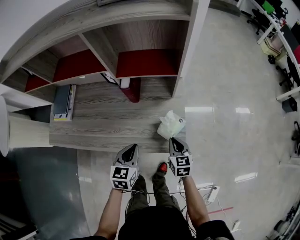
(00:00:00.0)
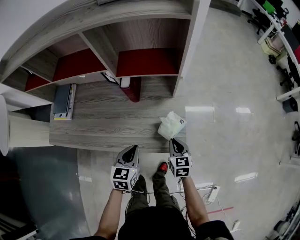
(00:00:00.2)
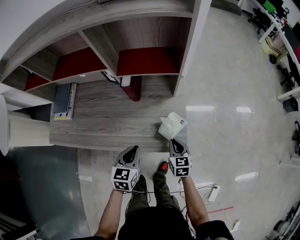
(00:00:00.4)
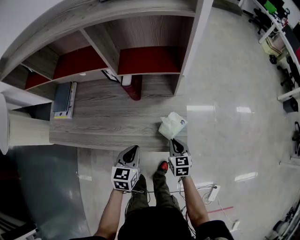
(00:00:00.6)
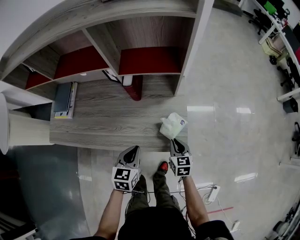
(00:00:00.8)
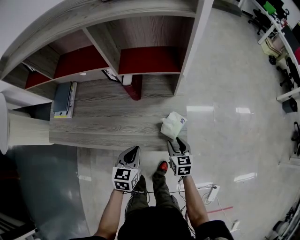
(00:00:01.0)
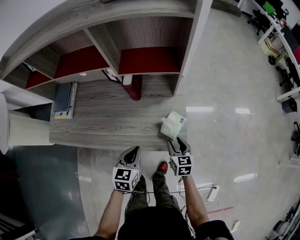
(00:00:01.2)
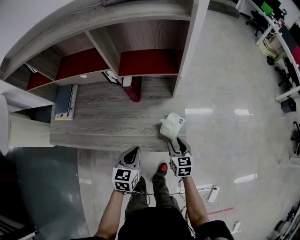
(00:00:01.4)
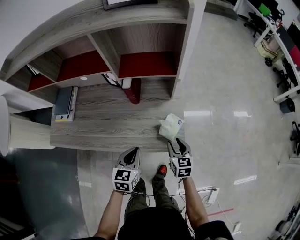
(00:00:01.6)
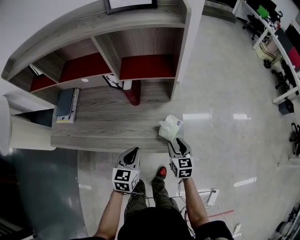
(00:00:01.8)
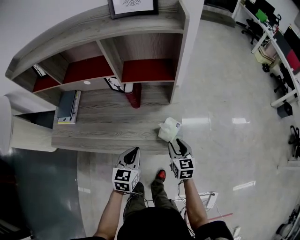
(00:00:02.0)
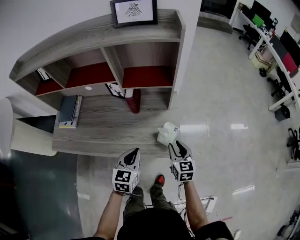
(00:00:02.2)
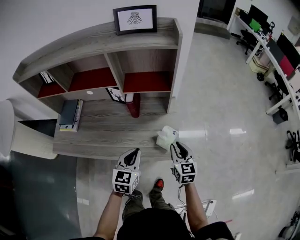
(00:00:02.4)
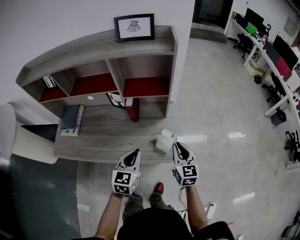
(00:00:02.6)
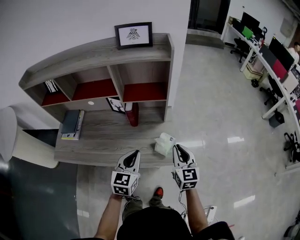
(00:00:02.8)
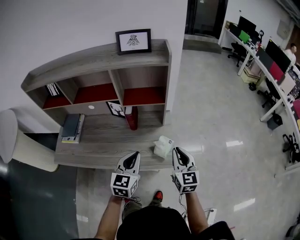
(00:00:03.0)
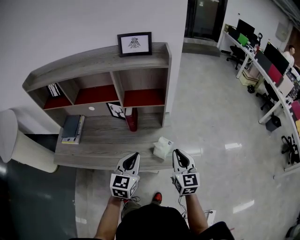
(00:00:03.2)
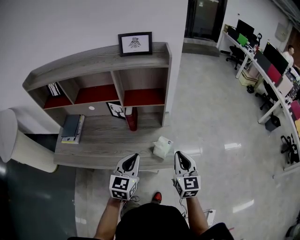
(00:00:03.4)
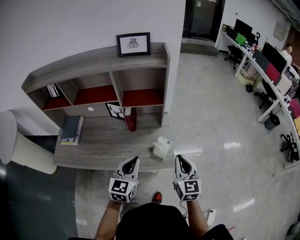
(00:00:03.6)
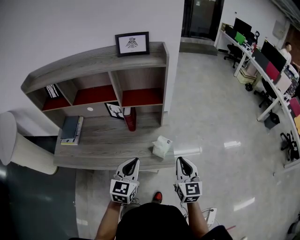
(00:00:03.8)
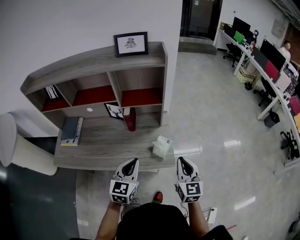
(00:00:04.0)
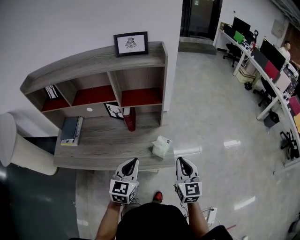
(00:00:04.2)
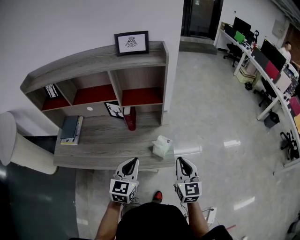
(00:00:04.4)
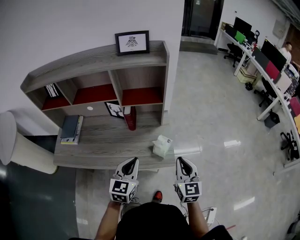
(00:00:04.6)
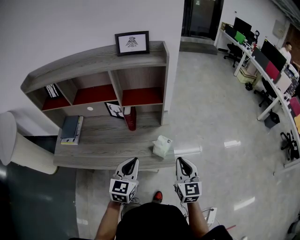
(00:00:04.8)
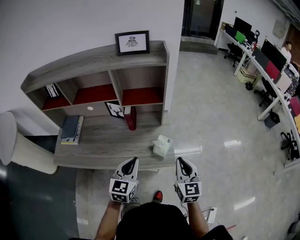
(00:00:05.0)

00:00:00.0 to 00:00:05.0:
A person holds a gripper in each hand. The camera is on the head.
00:00:00.0 to 00:00:01.6: The right gripper opens.
00:00:01.6 to 00:00:03.4: Both grippers travel together upward, about 20 cm. The right gripper rotates about 30 degrees, and closes its fingers, while the left gripper swivels some 20 degrees.
00:00:03.4 to 00:00:05.0: The grippers move only a little.

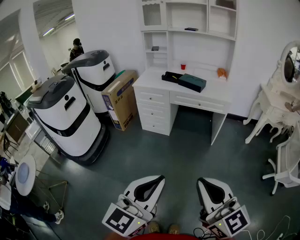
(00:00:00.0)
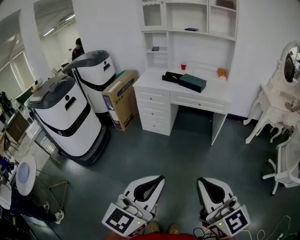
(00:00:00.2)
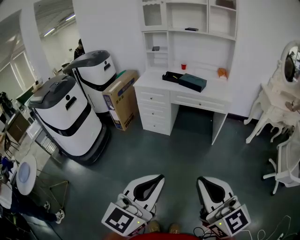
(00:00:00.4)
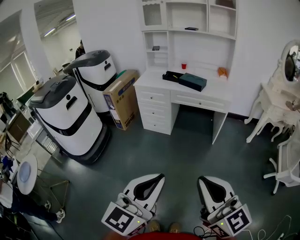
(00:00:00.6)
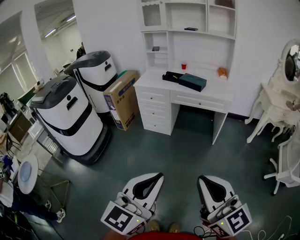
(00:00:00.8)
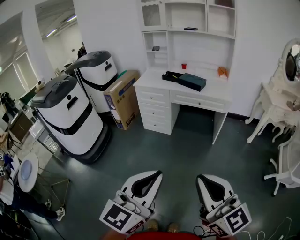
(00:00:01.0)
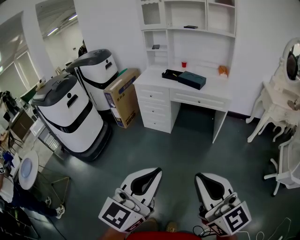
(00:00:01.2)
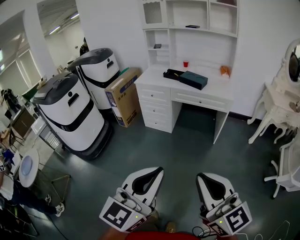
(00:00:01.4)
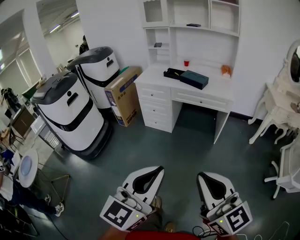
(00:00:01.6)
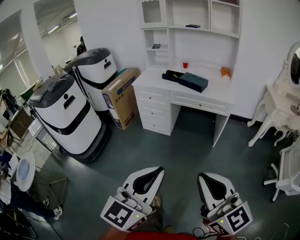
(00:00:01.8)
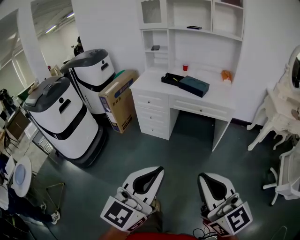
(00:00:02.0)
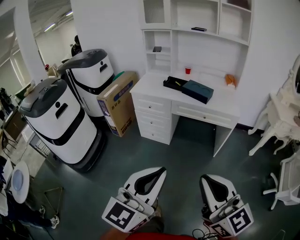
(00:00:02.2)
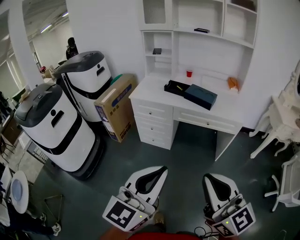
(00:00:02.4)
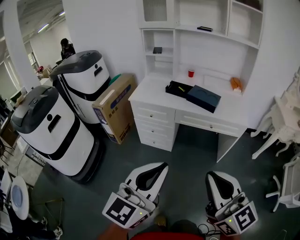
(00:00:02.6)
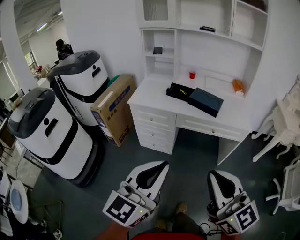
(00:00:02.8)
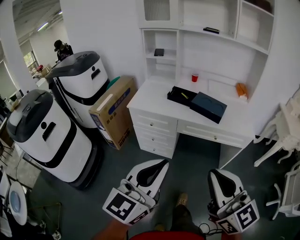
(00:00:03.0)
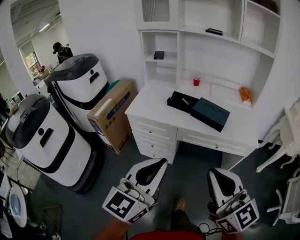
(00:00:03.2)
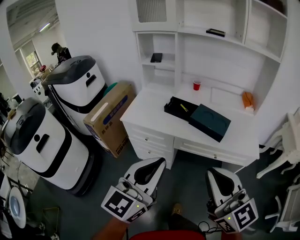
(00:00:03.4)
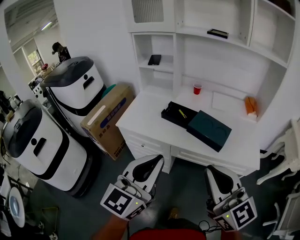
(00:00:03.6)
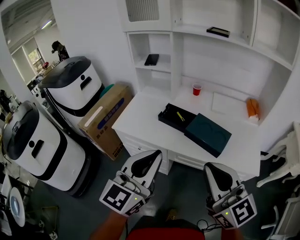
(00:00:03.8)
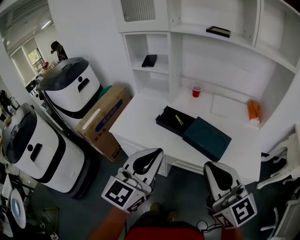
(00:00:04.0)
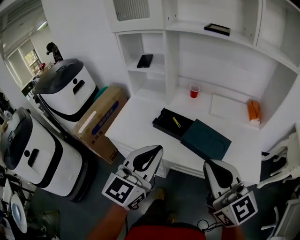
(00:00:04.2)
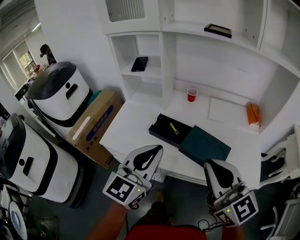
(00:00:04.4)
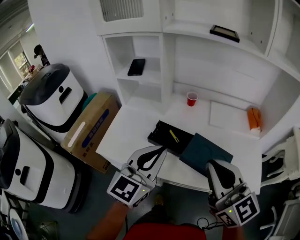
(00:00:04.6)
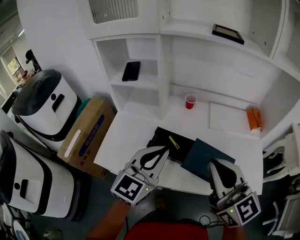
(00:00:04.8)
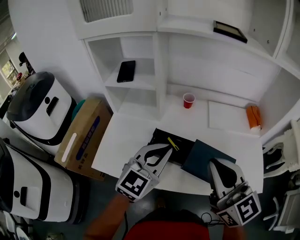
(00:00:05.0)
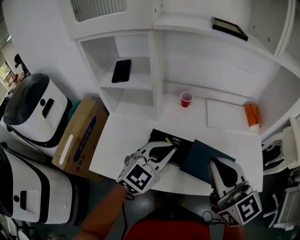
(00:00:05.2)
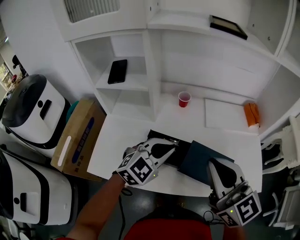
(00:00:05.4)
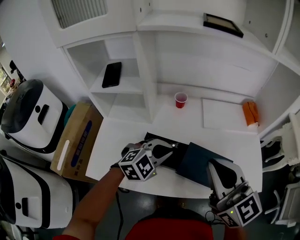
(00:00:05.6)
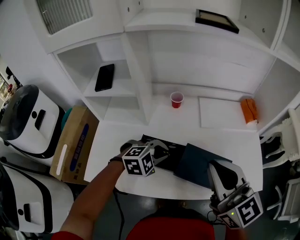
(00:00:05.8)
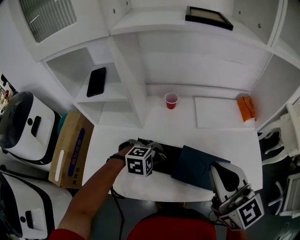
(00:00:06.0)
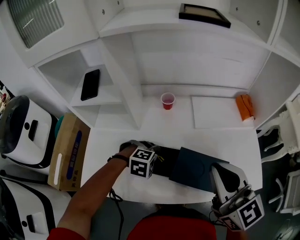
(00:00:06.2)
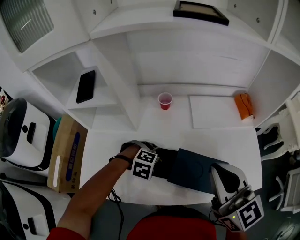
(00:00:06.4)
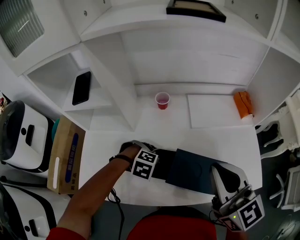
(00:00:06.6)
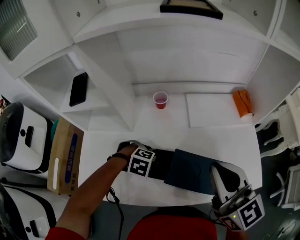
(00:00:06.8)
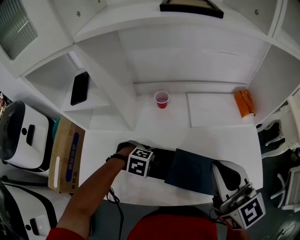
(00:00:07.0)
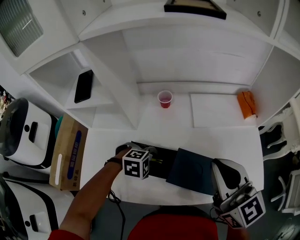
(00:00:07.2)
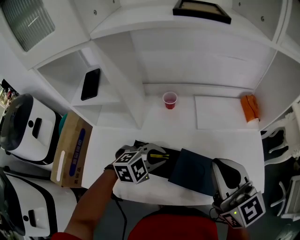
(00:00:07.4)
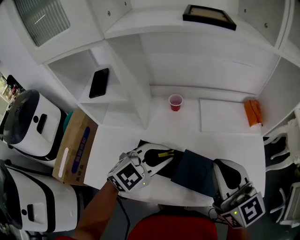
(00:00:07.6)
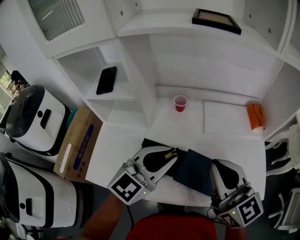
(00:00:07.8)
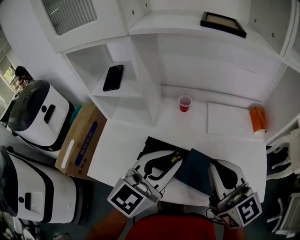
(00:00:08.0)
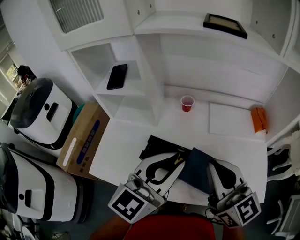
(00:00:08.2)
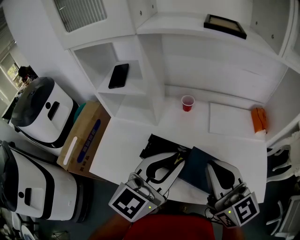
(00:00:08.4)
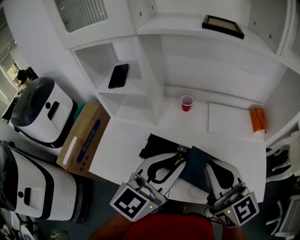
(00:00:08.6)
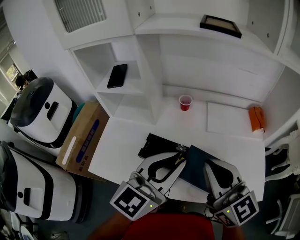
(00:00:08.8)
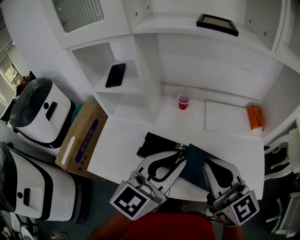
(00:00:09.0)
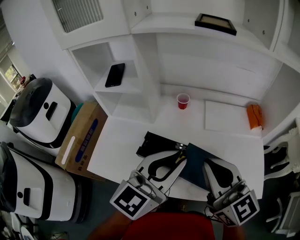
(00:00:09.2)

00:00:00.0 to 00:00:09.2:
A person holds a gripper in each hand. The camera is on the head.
00:00:00.0 to 00:00:01.6: The left gripper ends up approximately 5 cm from where it was; the right gripper moves roughly 5 cm.
00:00:01.6 to 00:00:03.0: The pair of grippers is taken forward, approximately 40 cm.
00:00:03.0 to 00:00:04.6: Both grippers are carried forward, roughly 50 cm.
00:00:04.6 to 00:00:06.2: The left gripper moves downward, approximately 25 cm, tilts its fingers roughly 70 degrees downward, and opens, while the right gripper ends up about 15 cm from where it was.
00:00:06.2 to 00:00:07.6: The left gripper moves upward, roughly 15 cm, and tilts its fingers some 50 degrees upward.
00:00:07.6 to 00:00:09.2: The right gripper ends up about 5 cm from where it was. The left gripper moves upward and backward, approximately 15 cm, and swivels approximately 40 degrees.

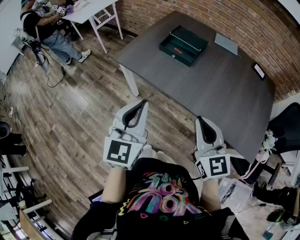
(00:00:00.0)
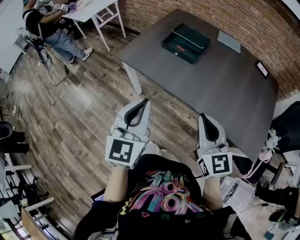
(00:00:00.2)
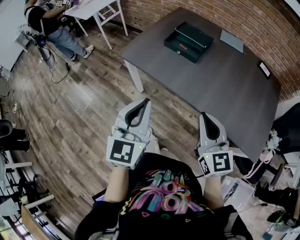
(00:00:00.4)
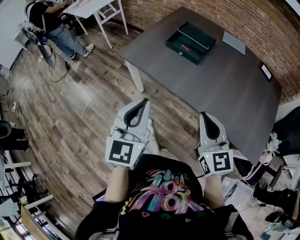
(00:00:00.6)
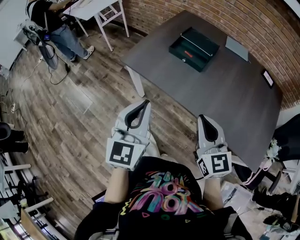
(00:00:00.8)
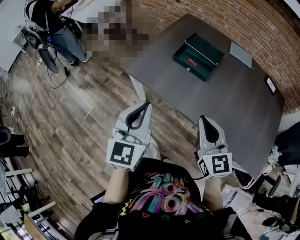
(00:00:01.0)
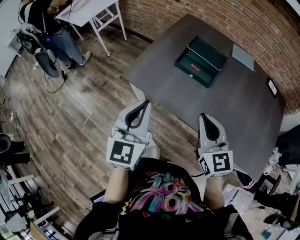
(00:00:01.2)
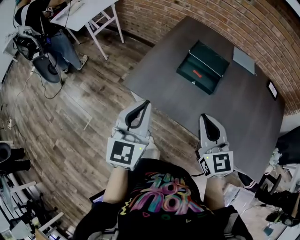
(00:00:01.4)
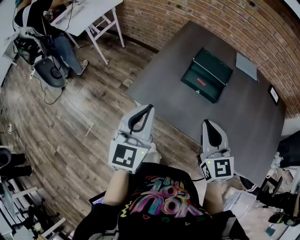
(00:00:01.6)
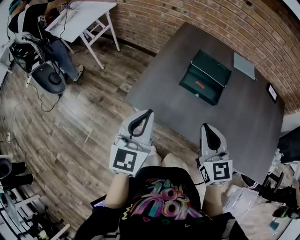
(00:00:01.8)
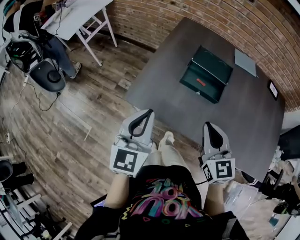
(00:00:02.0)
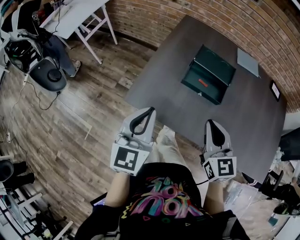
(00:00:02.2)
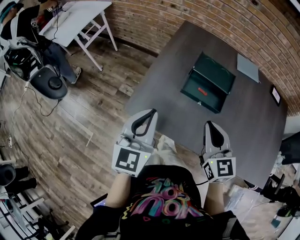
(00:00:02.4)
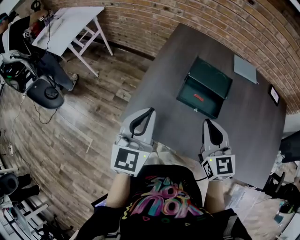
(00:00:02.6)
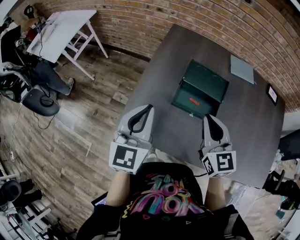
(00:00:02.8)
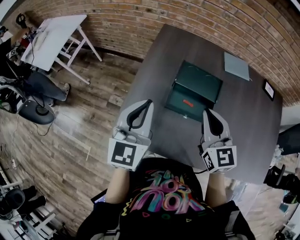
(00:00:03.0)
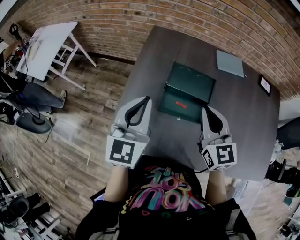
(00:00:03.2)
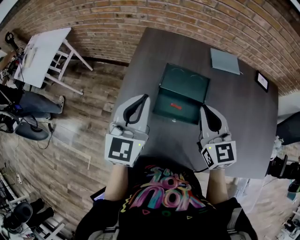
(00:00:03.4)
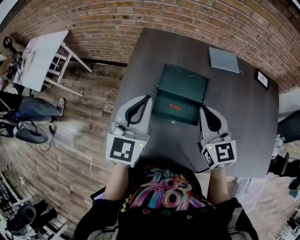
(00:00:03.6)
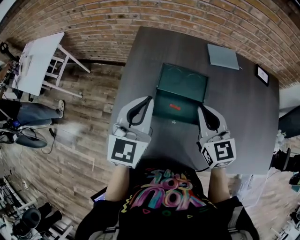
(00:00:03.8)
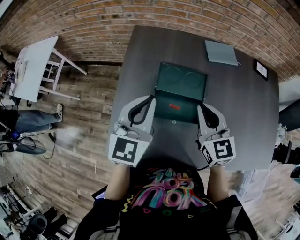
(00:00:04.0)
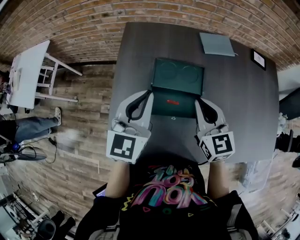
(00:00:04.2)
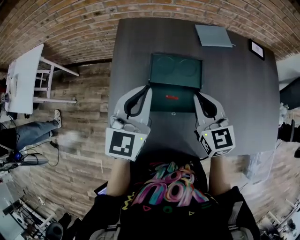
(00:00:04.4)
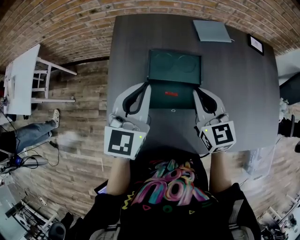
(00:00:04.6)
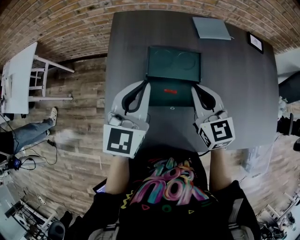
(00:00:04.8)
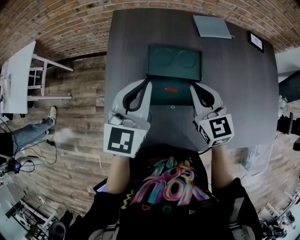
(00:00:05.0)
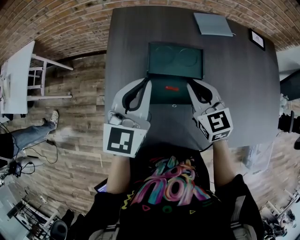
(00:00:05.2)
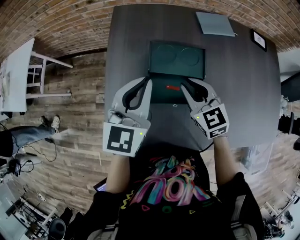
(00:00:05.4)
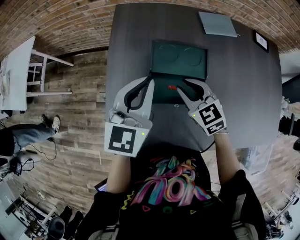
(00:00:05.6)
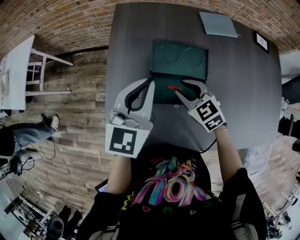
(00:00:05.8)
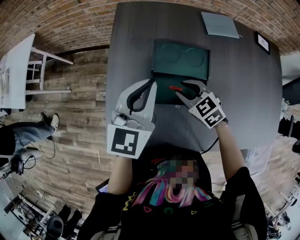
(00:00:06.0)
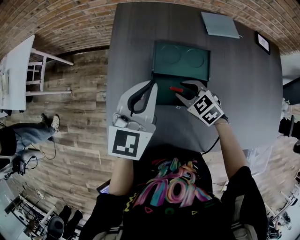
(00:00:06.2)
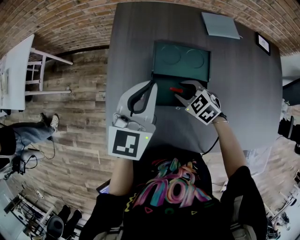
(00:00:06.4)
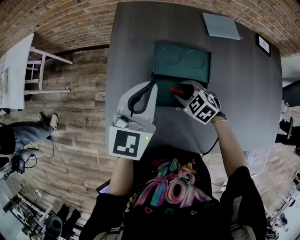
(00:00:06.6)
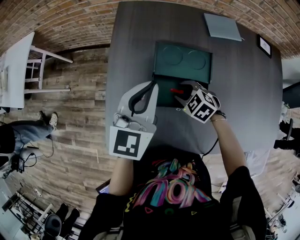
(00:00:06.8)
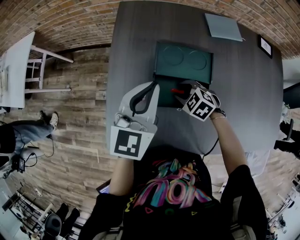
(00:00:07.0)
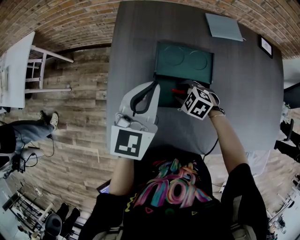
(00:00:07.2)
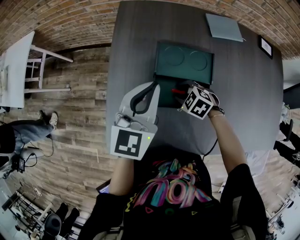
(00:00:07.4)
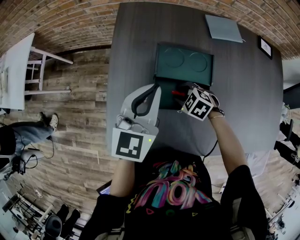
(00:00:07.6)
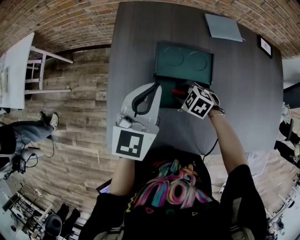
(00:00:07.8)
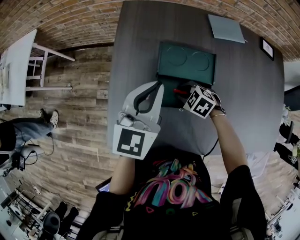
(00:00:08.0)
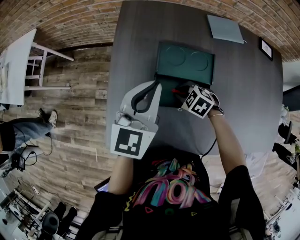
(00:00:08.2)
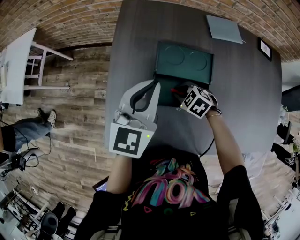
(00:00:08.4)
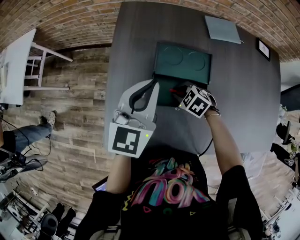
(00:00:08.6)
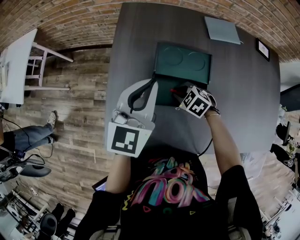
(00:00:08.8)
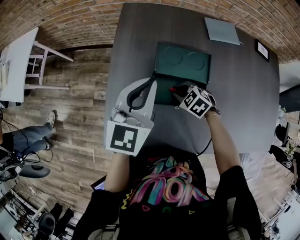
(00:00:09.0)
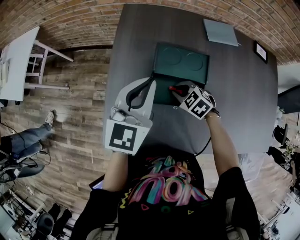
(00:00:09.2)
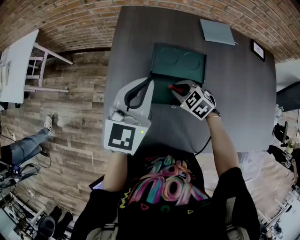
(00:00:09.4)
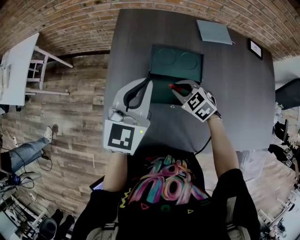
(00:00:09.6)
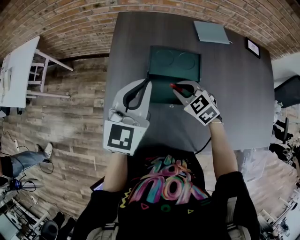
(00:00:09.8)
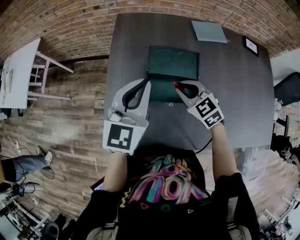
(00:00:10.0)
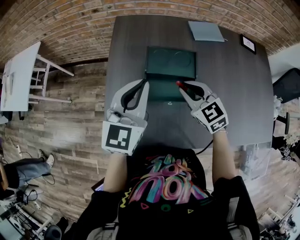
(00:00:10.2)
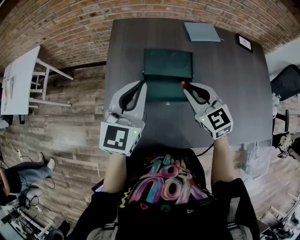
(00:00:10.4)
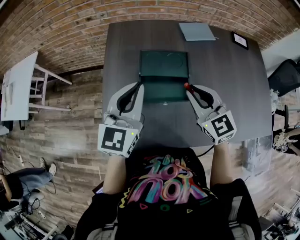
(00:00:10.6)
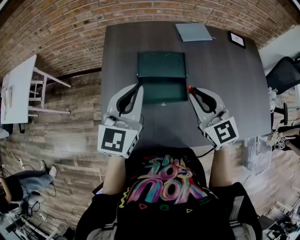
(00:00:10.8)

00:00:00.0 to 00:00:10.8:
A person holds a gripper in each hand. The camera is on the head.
00:00:00.0 to 00:00:01.6: The two grippers go approximately 30 cm forward and to the left.
00:00:01.6 to 00:00:03.0: The grippers both shift forward by about 20 cm.
00:00:03.0 to 00:00:04.6: The right gripper goes about 10 cm forward and to the right. Meanwhile the left gripper moves forward and to the right, some 15 cm.
00:00:04.6 to 00:00:06.2: The right gripper is displaced downward by approximately 15 cm, points its fingers about 30 degrees further downward, and opens.
00:00:06.2 to 00:00:07.8: The right gripper goes approximately 5 cm downward.
00:00:07.8 to 00:00:09.2: The right gripper closes.
00:00:09.2 to 00:00:10.8: The right gripper travels upward by some 25 cm, and angles its fingers upward, by approximately 40 degrees, while the left gripper shifts about 5 cm backward.
